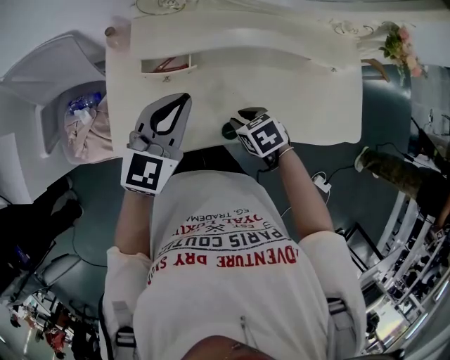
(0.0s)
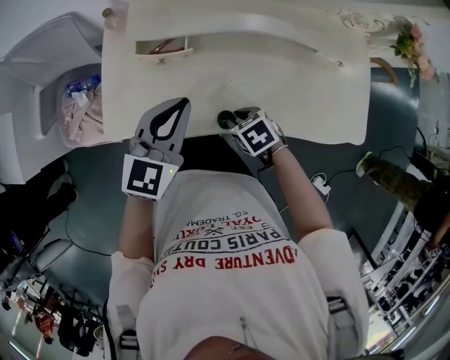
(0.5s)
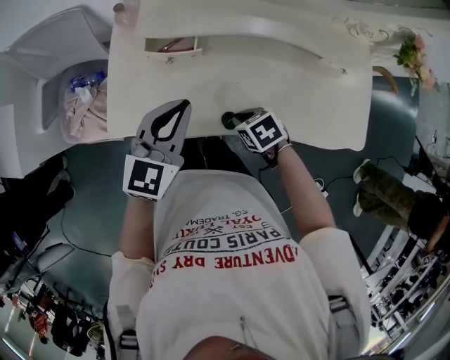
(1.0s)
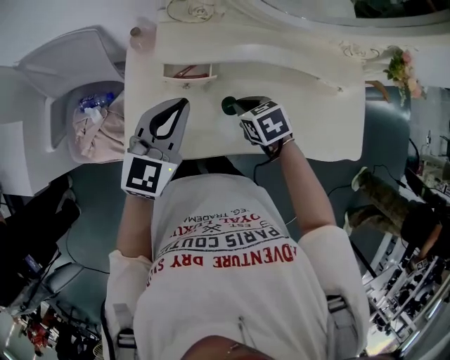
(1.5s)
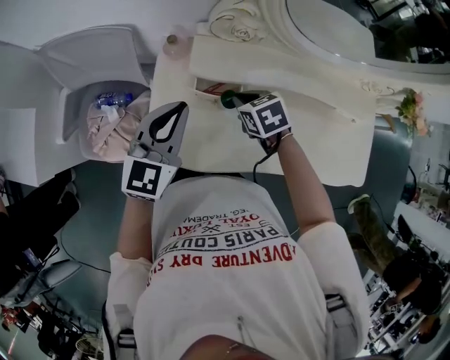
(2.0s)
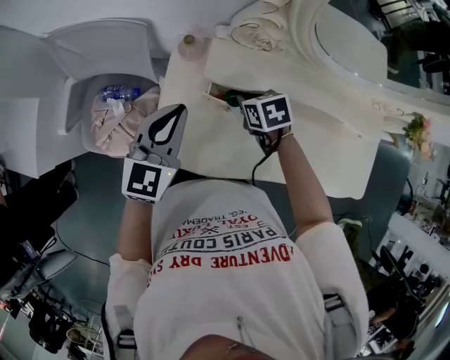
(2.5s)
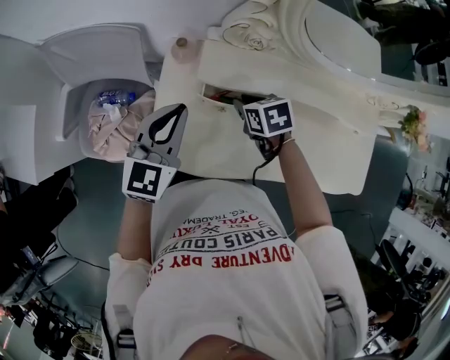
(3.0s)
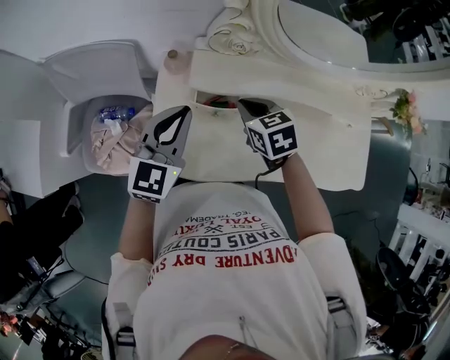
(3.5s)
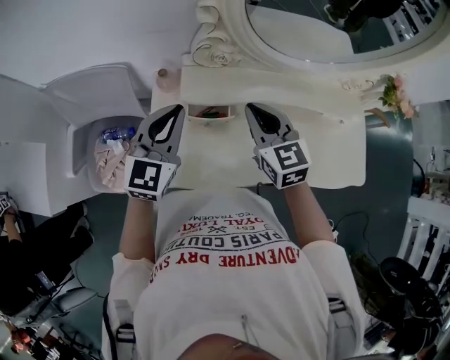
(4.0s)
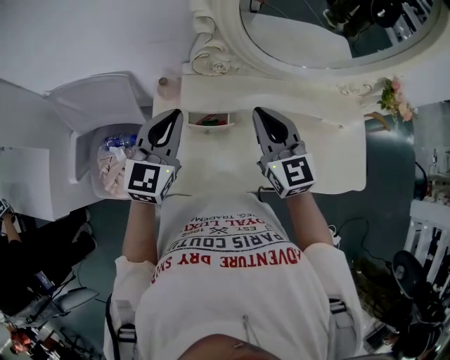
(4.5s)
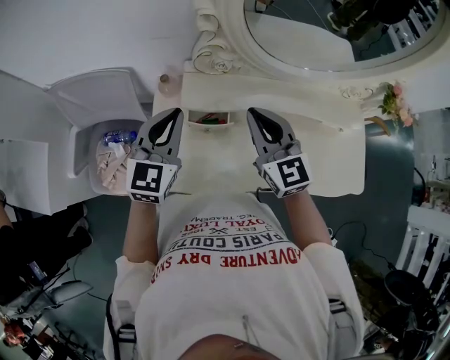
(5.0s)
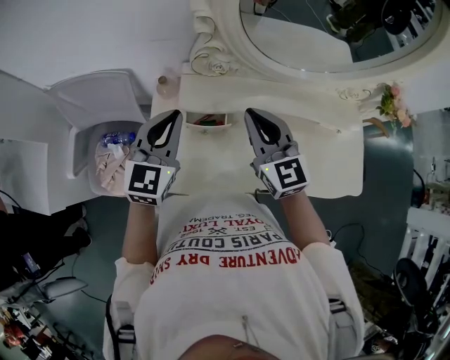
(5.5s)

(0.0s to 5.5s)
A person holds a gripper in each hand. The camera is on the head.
0.0s - 2.0s: The right gripper moves forward and to the left, roughly 20 cm, and closes its fingers. The left gripper heads to the left and forward, covering roughly 15 cm.
2.0s - 3.5s: The right gripper moves upward, about 5 cm.
3.5s - 5.5s: The left gripper shifts by about 5 cm, while the right gripper goes about 15 cm upward, and points its fingers roughly 40 degrees further upward.

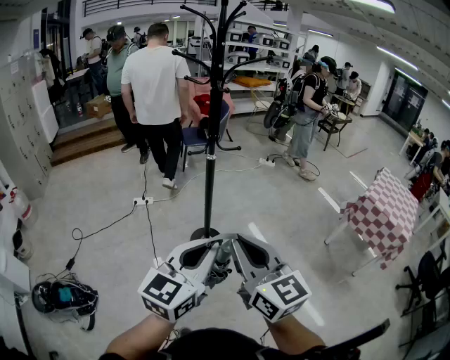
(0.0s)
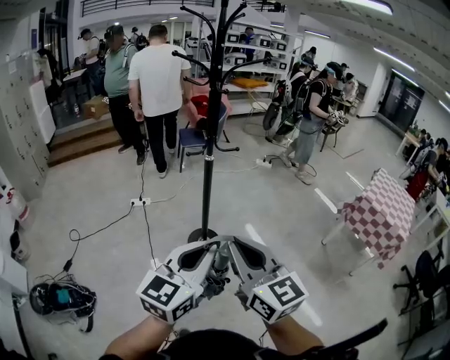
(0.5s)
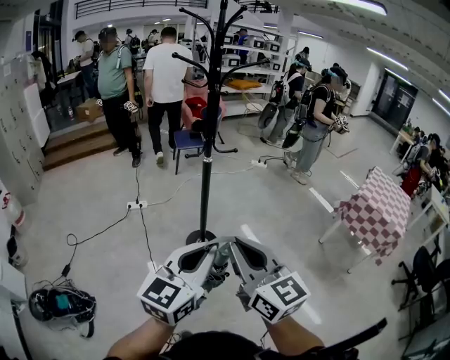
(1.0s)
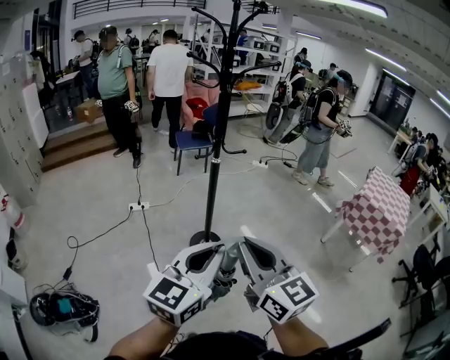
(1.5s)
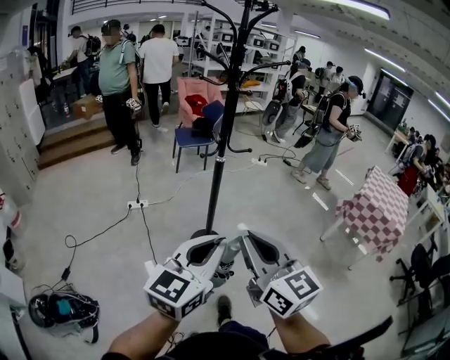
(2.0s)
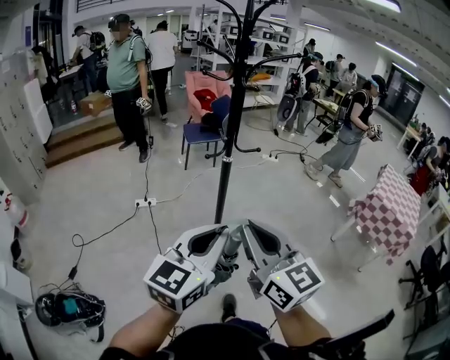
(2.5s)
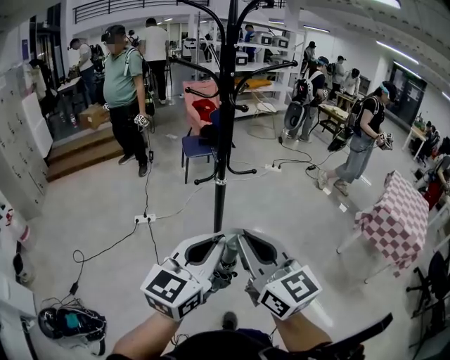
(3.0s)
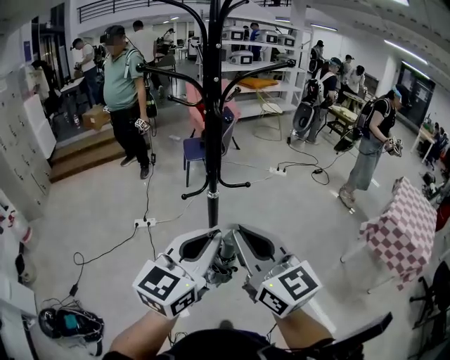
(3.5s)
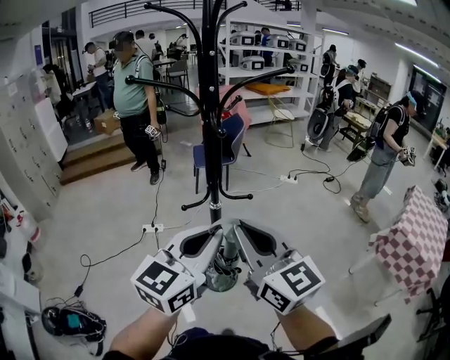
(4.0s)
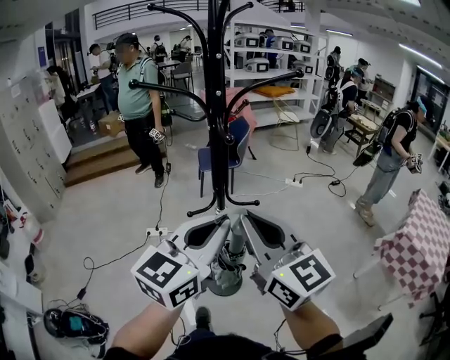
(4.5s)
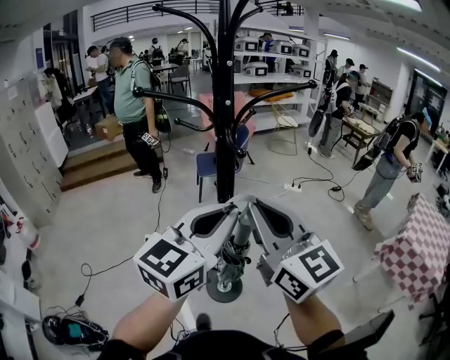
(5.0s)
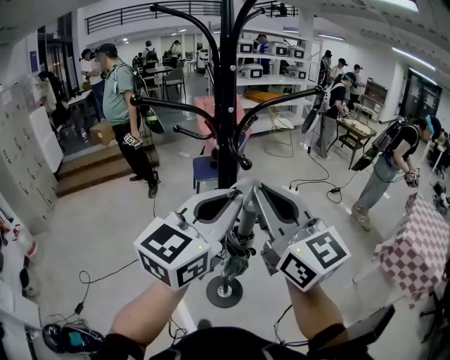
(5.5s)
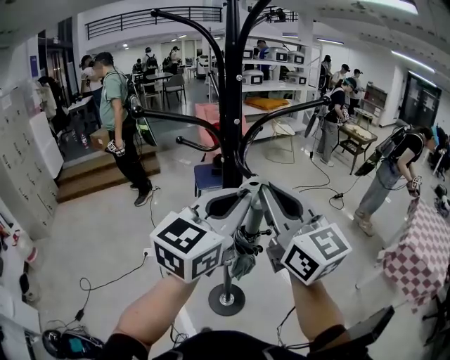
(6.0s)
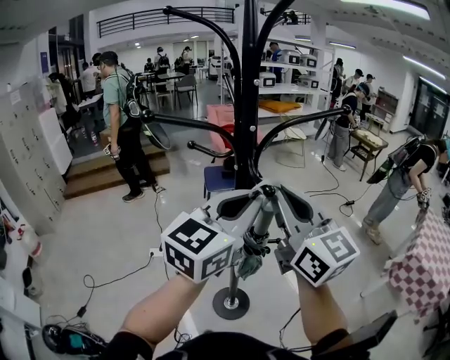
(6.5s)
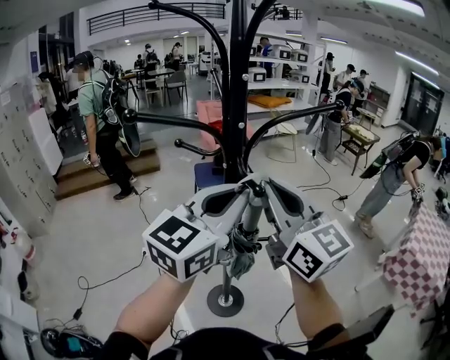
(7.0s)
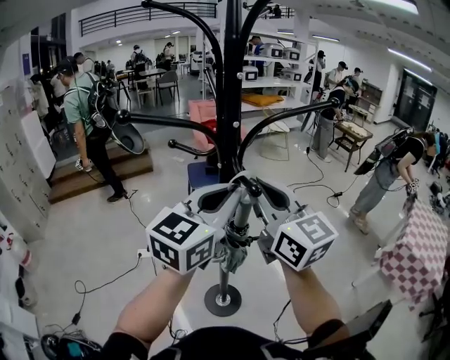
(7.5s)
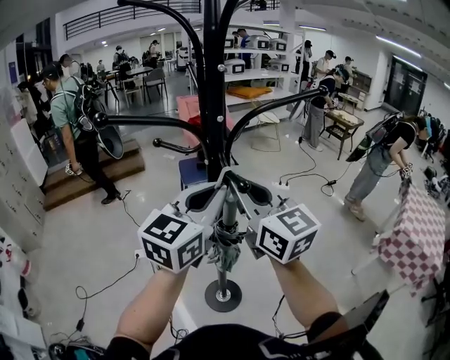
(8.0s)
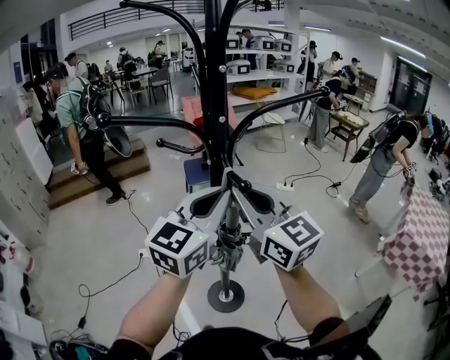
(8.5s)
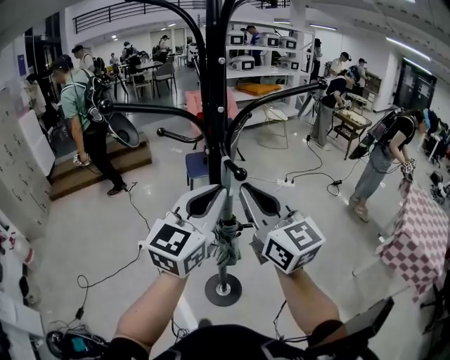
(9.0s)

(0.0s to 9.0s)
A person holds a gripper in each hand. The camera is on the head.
0.0s - 2.0s: The two grippers go approximately 10 cm to the left.
2.0s - 4.5s: Both grippers move forward, about 30 cm.
4.5s - 7.0s: The two grippers go approximately 20 cm forward and upward.
7.0s - 9.0s: Both grippers travel together downward, approximately 5 cm.

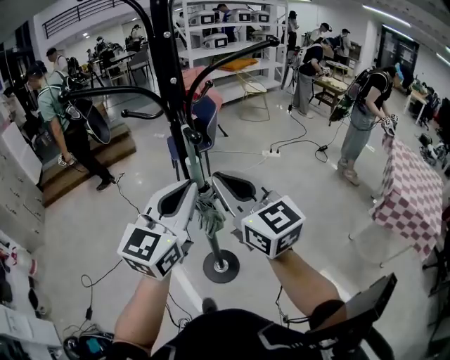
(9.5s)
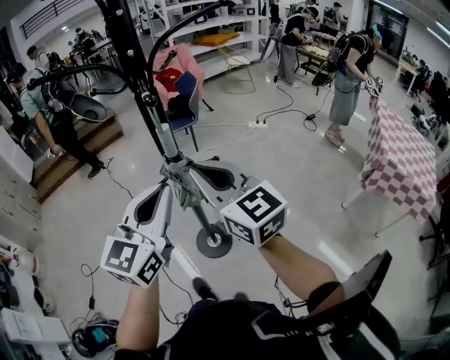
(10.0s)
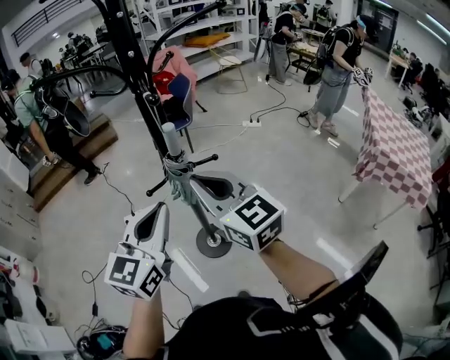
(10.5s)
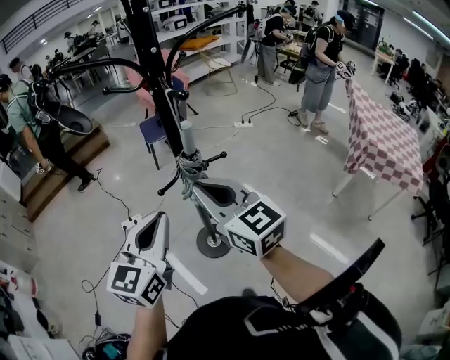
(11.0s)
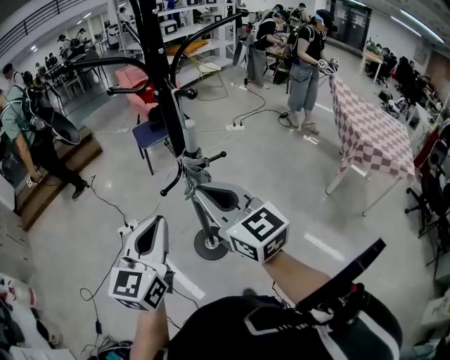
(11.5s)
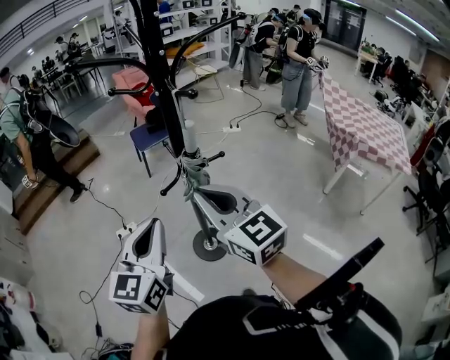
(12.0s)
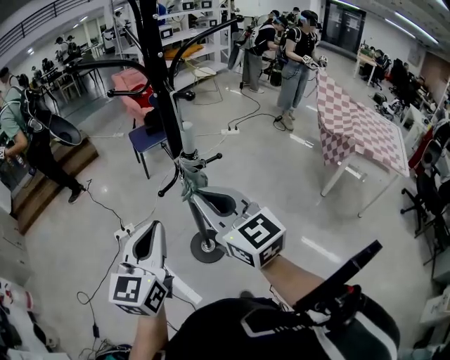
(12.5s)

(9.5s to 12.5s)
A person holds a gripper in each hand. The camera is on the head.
9.5s - 11.0s: The right gripper is displaced backward and downward by approximately 10 cm. The left gripper heads backward, to the left and downward, covering roughly 15 cm.
11.0s - 12.5s: The grippers move only a little.

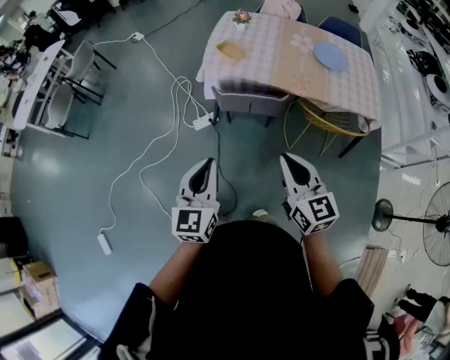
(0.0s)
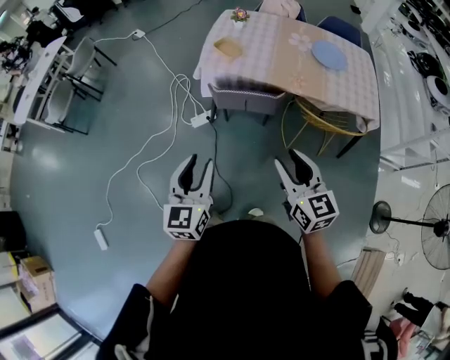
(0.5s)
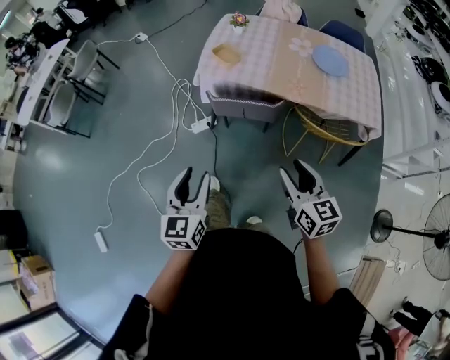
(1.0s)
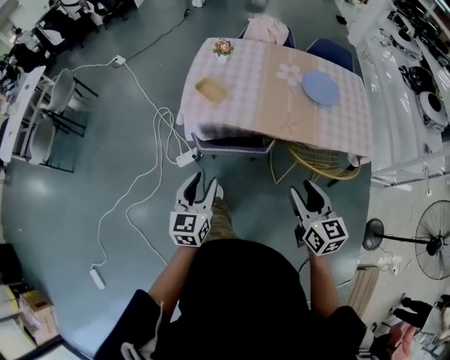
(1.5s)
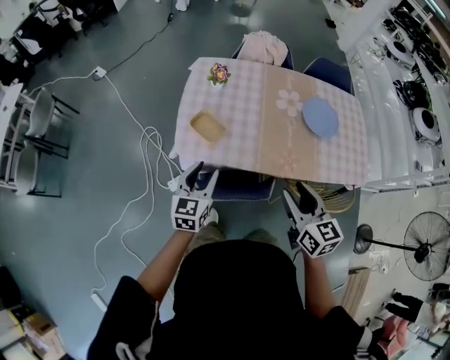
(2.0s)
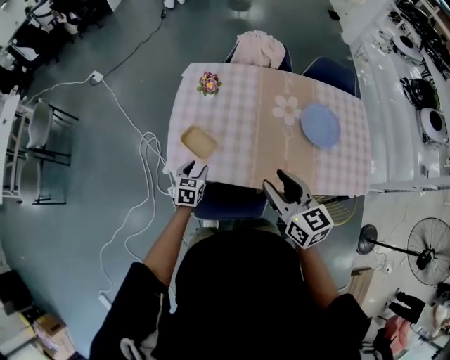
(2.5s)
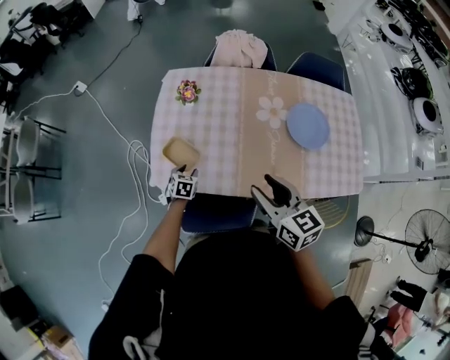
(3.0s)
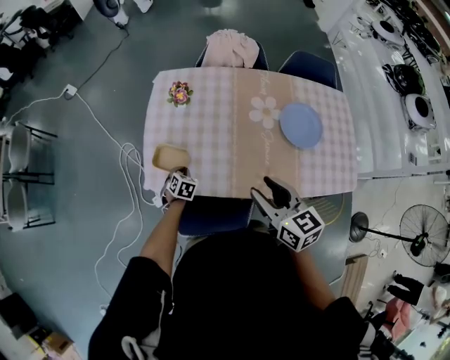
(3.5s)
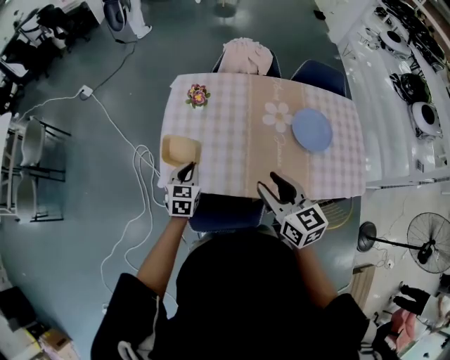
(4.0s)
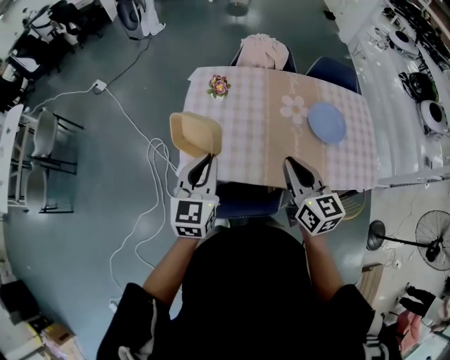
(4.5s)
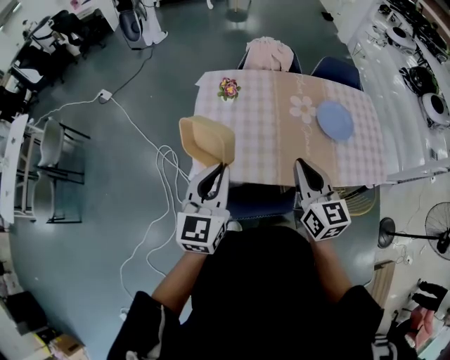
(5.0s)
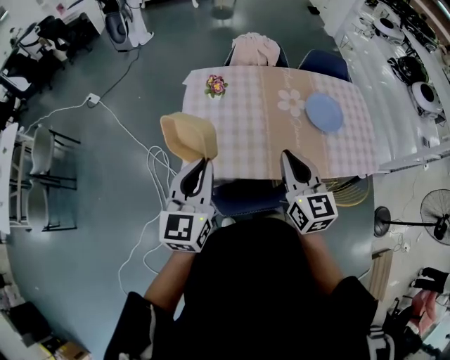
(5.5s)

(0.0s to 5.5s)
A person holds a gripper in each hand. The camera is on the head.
0.0s - 2.0s: The grippers both shift forward by roughly 40 cm. The right gripper opens up; the left gripper opens.
2.0s - 3.5s: The left gripper shifts roughly 30 cm downward and forward, points its fingers some 40 degrees further downward, and closes its fingers. Meanwhile the right gripper heads forward, covering some 15 cm.
3.5s - 5.5s: The left gripper moves upward, about 40 cm, and tips its fingers upward by some 50 degrees; the right gripper shifts roughly 10 cm to the left and upward, rotates some 20 degrees, and closes its fingers.

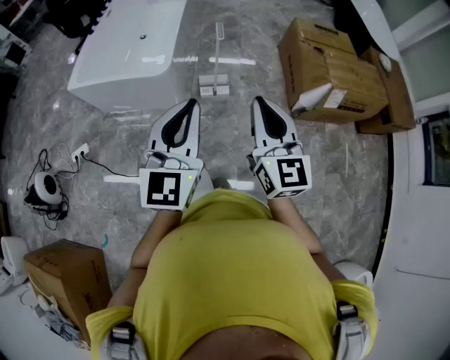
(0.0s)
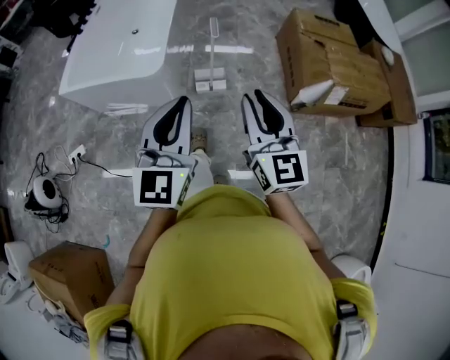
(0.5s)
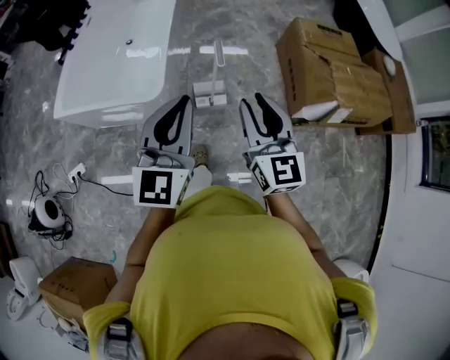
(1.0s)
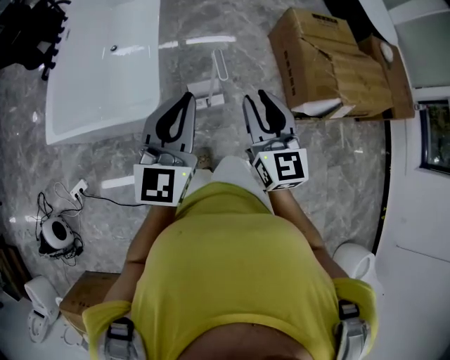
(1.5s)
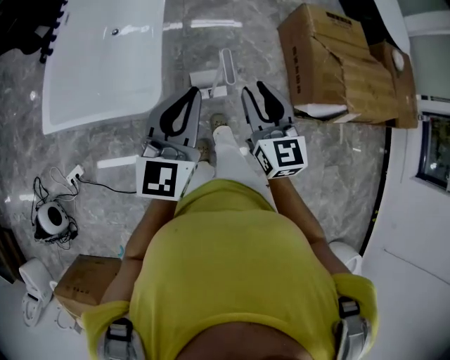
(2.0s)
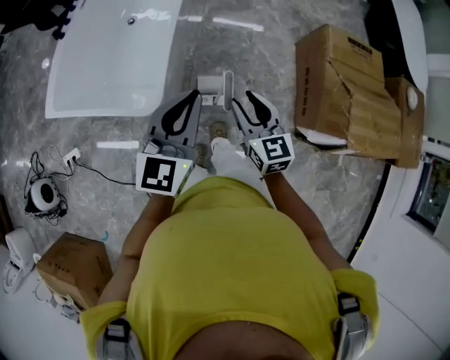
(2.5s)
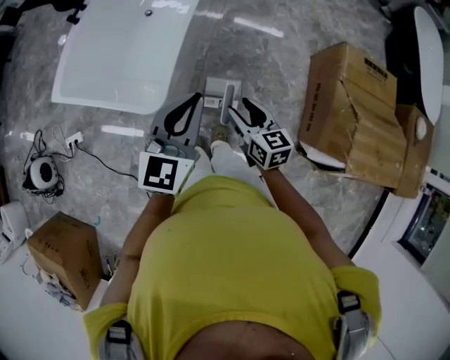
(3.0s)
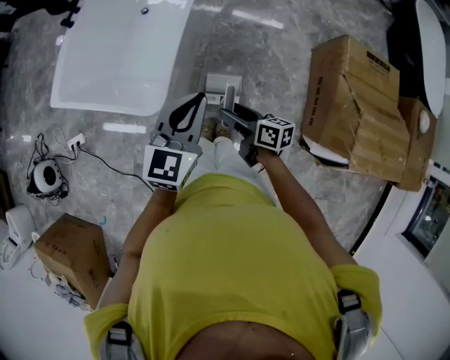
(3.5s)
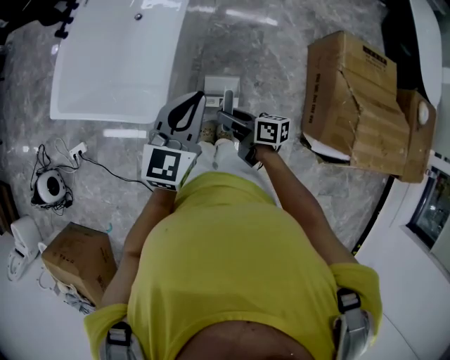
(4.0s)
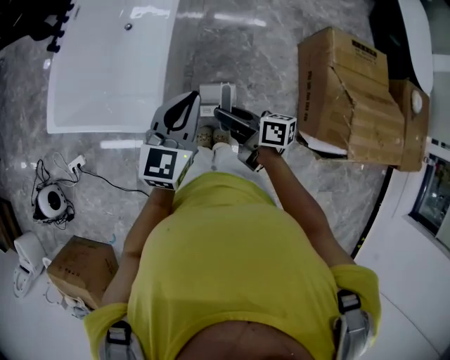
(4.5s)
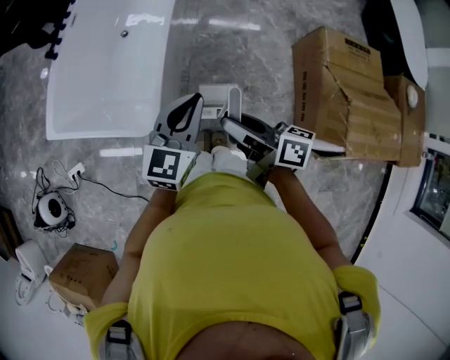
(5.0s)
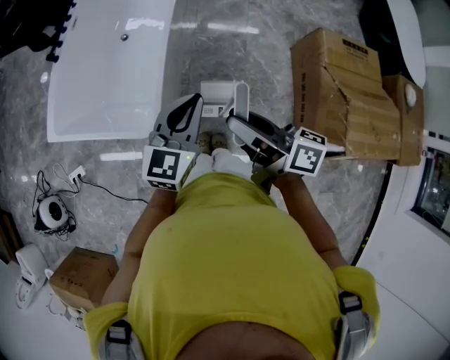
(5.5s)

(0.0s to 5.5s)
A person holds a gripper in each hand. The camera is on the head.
0.0s - 2.0s: Both grippers move forward, approximately 35 cm. The right gripper opens.
2.0s - 3.5s: The right gripper shifts approximately 20 cm downward, changes its angle by approximately 70 degrees, and opens up, while the left gripper changes place by about 15 cm.
3.5s - 5.5s: The right gripper moves upward, approximately 20 cm, turns by approximately 20 degrees, and closes.
